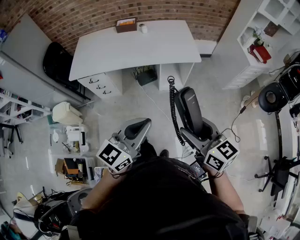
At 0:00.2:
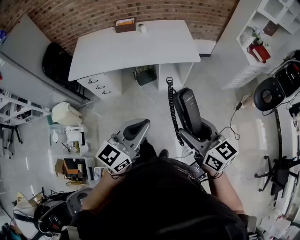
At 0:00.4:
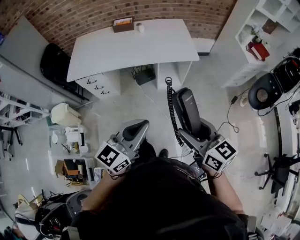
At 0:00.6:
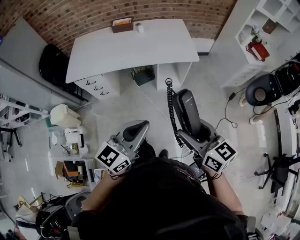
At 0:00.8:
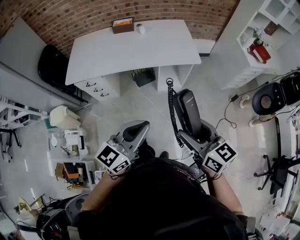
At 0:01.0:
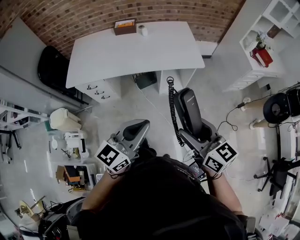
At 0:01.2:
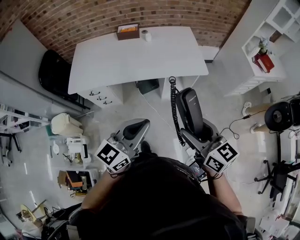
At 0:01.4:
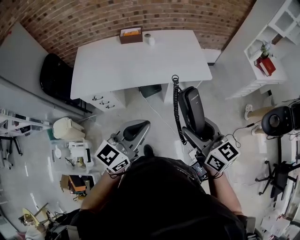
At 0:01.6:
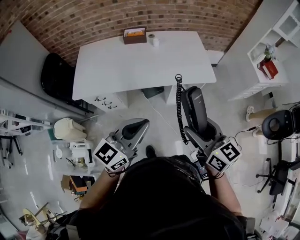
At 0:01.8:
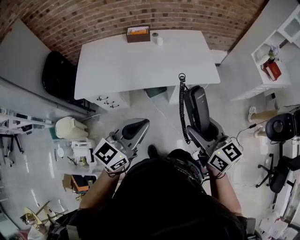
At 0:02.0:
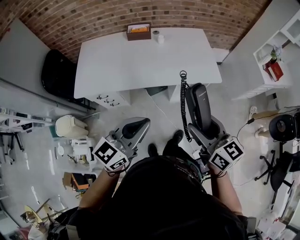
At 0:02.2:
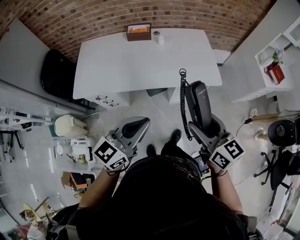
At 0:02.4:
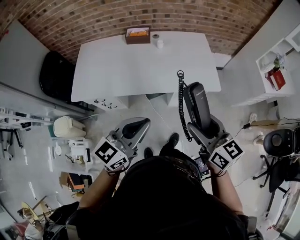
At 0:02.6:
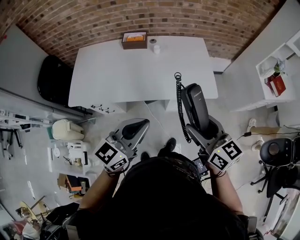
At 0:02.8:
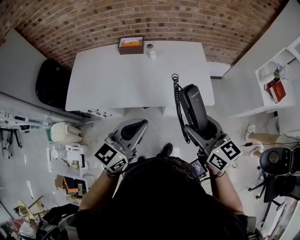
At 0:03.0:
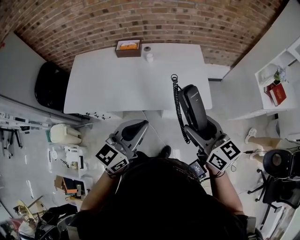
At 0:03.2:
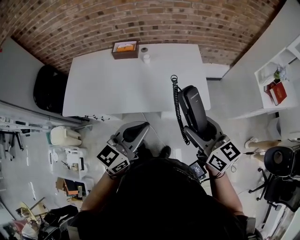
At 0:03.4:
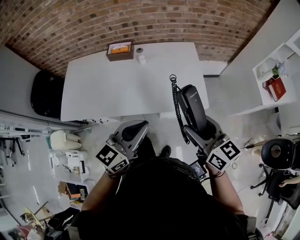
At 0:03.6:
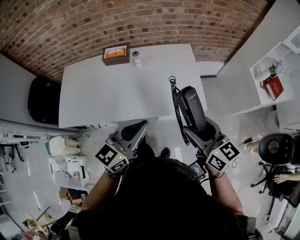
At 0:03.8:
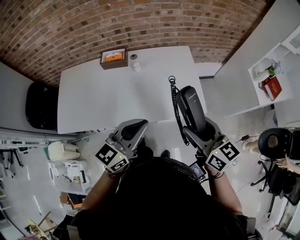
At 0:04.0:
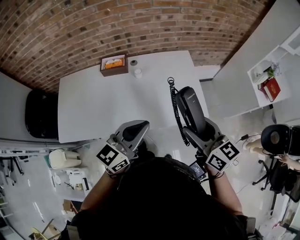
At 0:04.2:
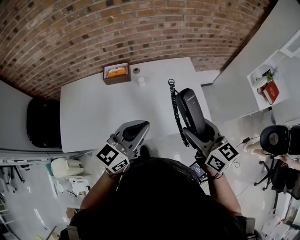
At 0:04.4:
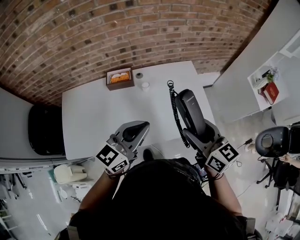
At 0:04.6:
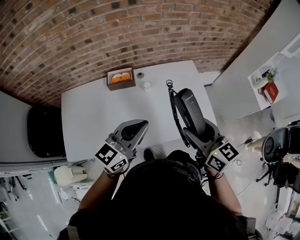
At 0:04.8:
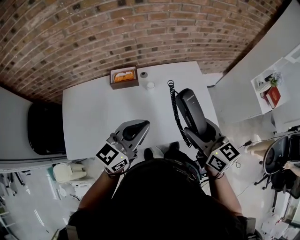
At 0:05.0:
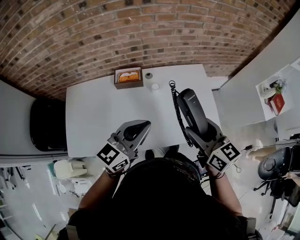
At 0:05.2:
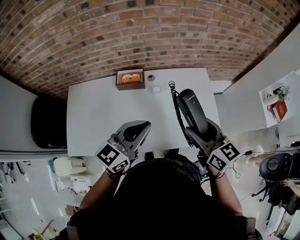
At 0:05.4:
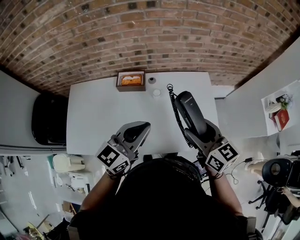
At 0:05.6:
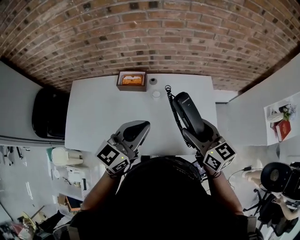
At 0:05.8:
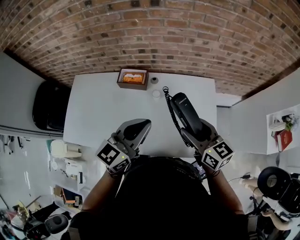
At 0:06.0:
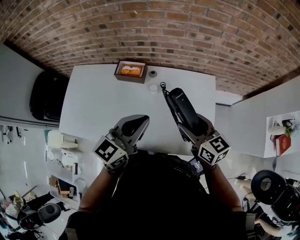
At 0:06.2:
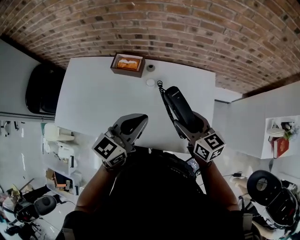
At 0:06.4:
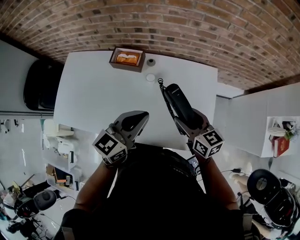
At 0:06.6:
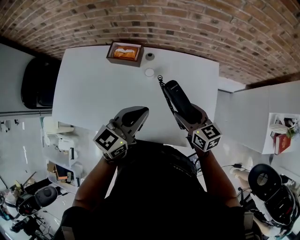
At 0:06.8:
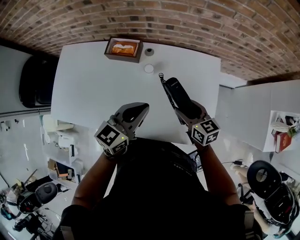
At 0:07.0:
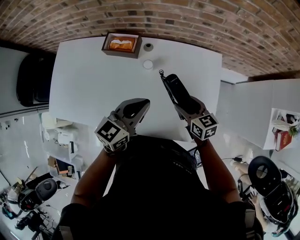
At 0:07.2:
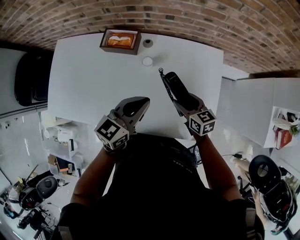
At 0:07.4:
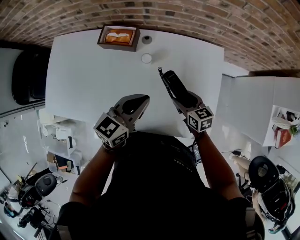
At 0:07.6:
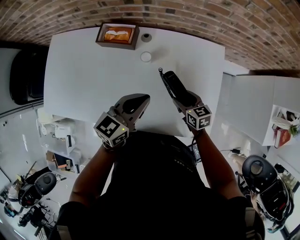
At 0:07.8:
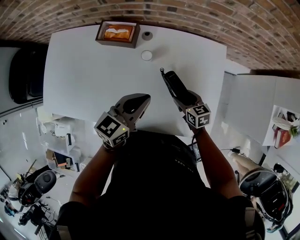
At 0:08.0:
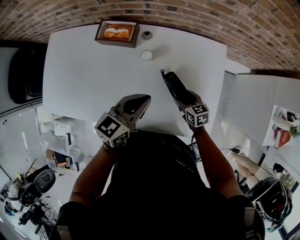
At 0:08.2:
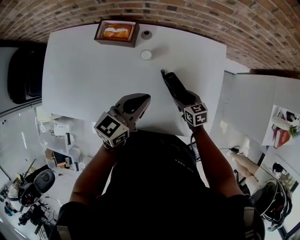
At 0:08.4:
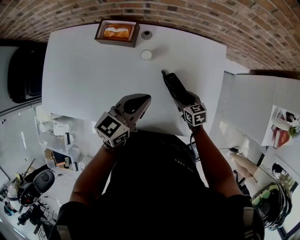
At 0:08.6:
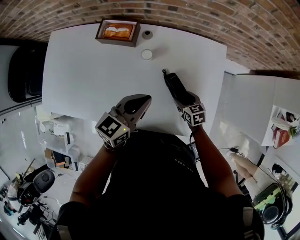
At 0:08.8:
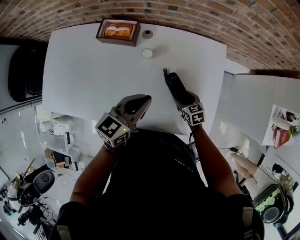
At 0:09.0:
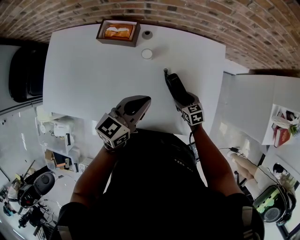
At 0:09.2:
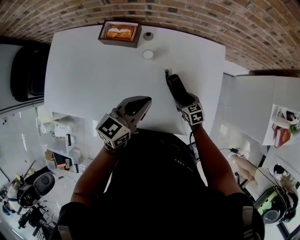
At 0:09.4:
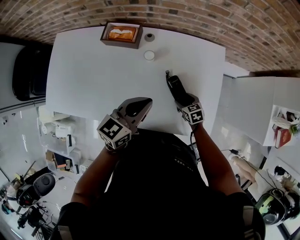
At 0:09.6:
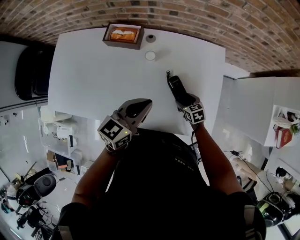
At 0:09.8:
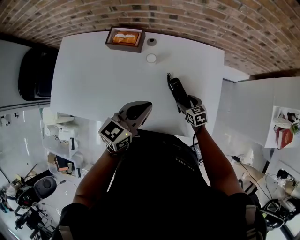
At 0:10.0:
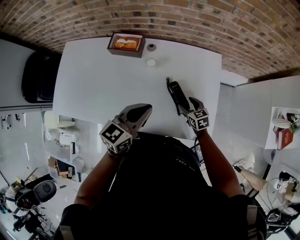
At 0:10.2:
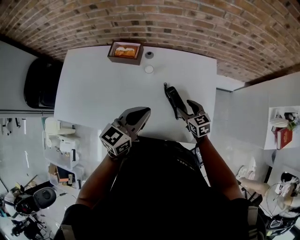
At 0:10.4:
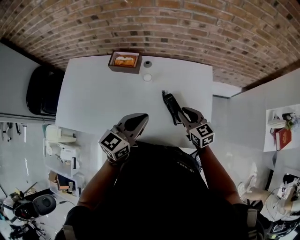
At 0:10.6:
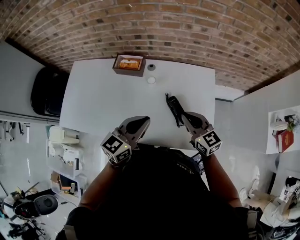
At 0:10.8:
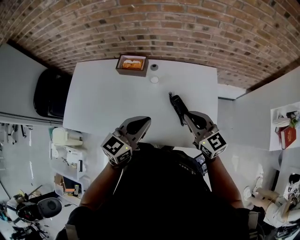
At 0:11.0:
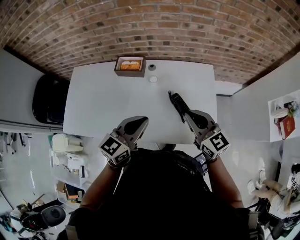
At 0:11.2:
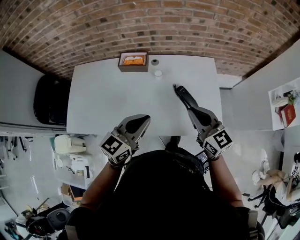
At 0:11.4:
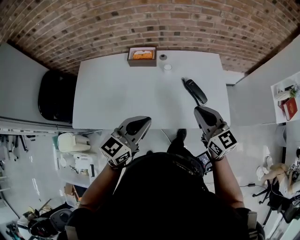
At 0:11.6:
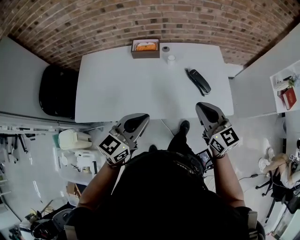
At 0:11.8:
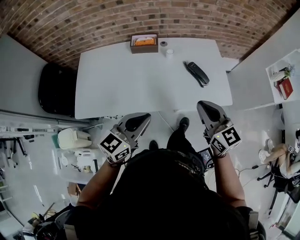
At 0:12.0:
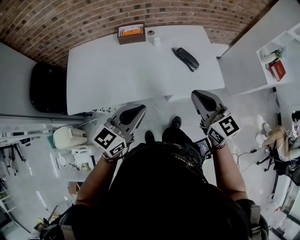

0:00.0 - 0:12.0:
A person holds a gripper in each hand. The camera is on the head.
0:00.0 - 0:01.6: Both grippers move forward and to the left, approximately 25 cm.
0:01.6 - 0:03.0: Both grippers travel together forward and to the right, some 25 cm.
0:03.0 - 0:04.4: The two grippers go some 20 cm forward and to the left.
0:04.4 - 0:06.0: The left gripper shifts approximately 15 cm forward and to the right, and swivels roughly 20 degrees. Meanwhile the right gripper moves forward and downward, roughly 20 cm, and rotates approximately 20 degrees.
0:06.0 - 0:07.6: The left gripper heads downward, covering about 15 cm. The right gripper moves downward, approximately 30 cm, and changes its angle by roughly 20 degrees.
0:07.6 - 0:09.0: The right gripper travels downward by approximately 10 cm.
0:09.0 - 0:10.4: The right gripper travels upward by approximately 20 cm, changes its angle by about 30 degrees, and closes, while the left gripper shifts roughly 10 cm upward and backward.
0:10.4 - 0:12.0: The left gripper travels backward and to the left by some 30 cm. The right gripper is displaced backward, upward and to the left by roughly 40 cm, and rotates about 20 degrees.

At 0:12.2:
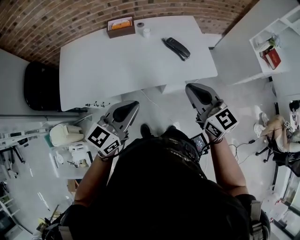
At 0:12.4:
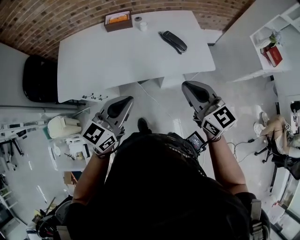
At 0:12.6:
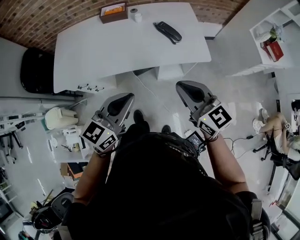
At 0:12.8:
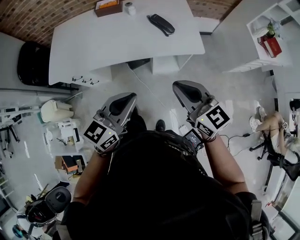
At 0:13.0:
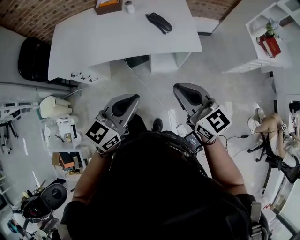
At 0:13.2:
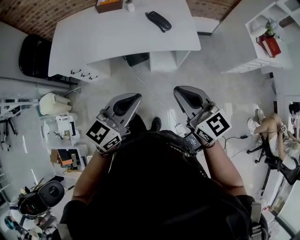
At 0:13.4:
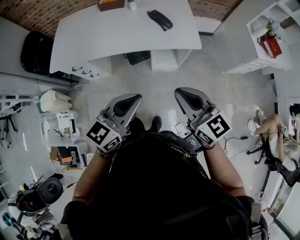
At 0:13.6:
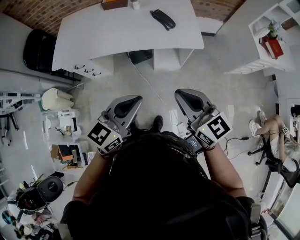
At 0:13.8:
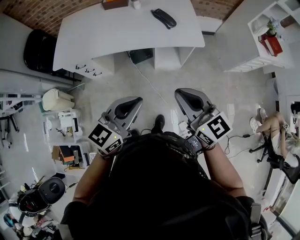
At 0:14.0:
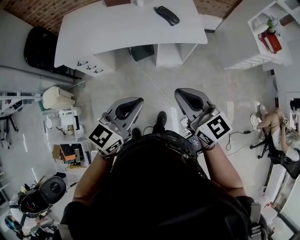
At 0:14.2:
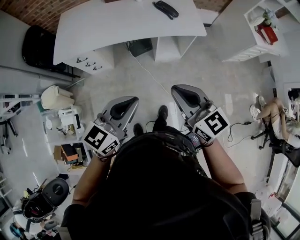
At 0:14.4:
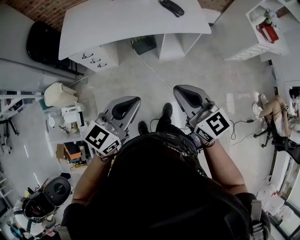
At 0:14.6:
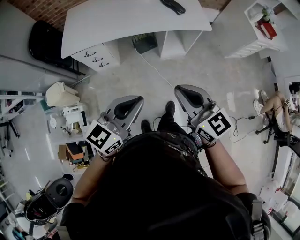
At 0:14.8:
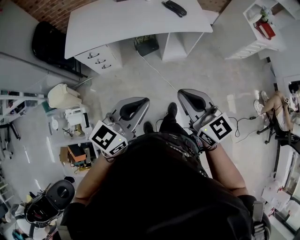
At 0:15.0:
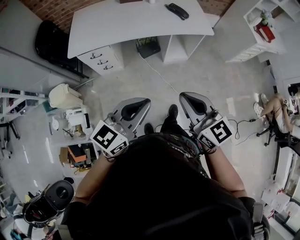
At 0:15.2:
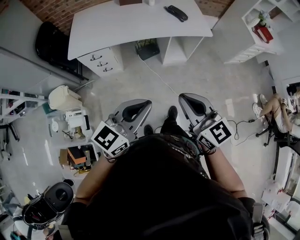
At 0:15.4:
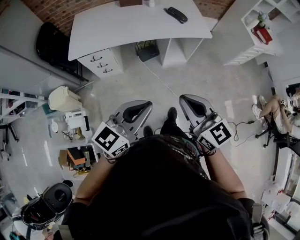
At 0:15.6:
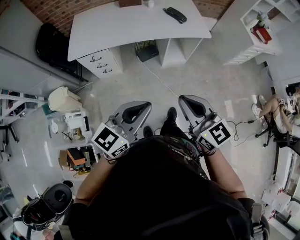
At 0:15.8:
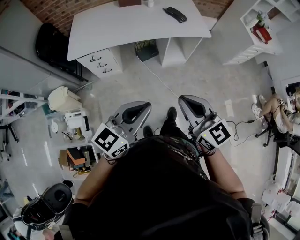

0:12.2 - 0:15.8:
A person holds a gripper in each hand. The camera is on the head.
0:12.2 - 0:14.0: The right gripper moves backward, approximately 25 cm. Meanwhile the left gripper travels backward and to the right by some 30 cm.
0:14.0 - 0:15.8: The grippers both shift backward and to the left by approximately 20 cm.

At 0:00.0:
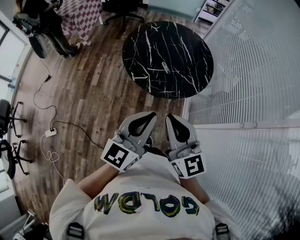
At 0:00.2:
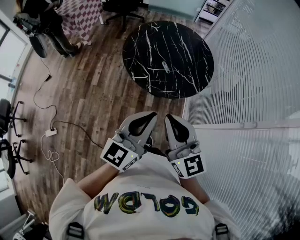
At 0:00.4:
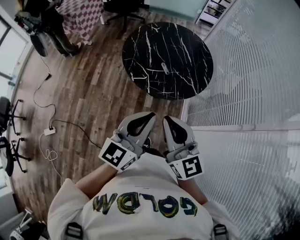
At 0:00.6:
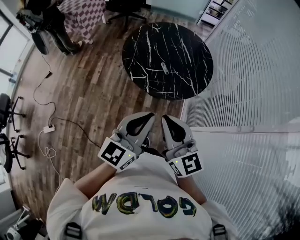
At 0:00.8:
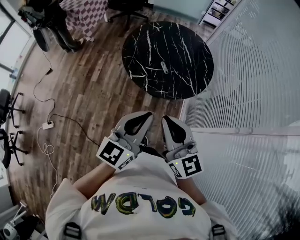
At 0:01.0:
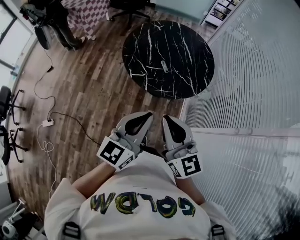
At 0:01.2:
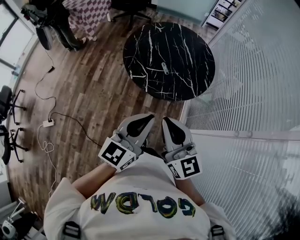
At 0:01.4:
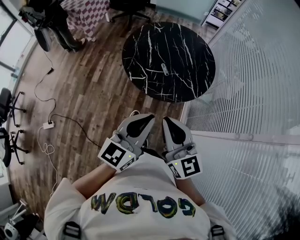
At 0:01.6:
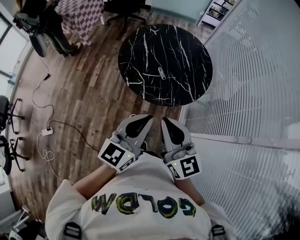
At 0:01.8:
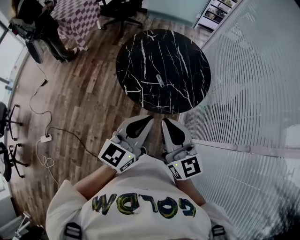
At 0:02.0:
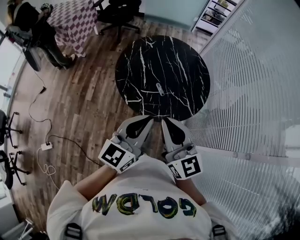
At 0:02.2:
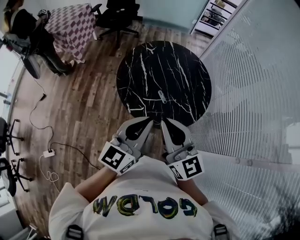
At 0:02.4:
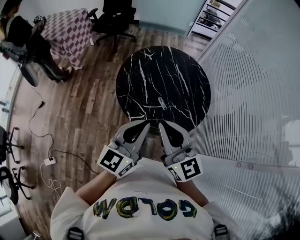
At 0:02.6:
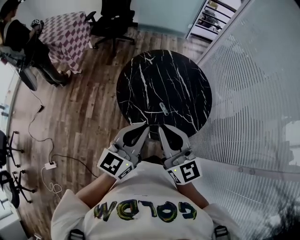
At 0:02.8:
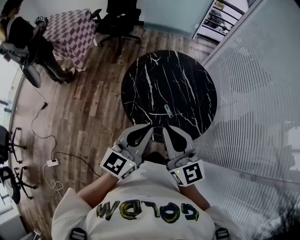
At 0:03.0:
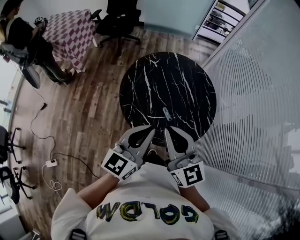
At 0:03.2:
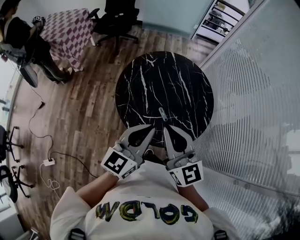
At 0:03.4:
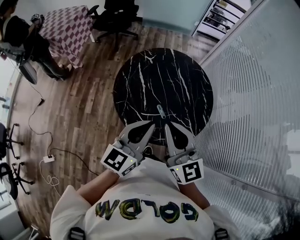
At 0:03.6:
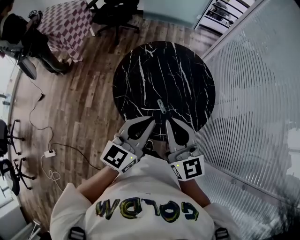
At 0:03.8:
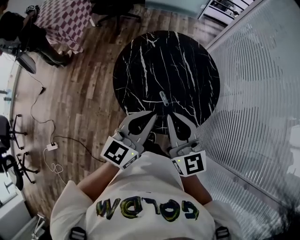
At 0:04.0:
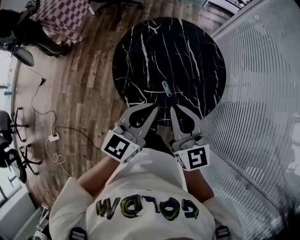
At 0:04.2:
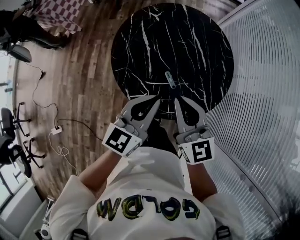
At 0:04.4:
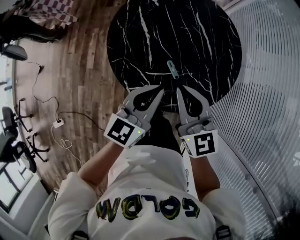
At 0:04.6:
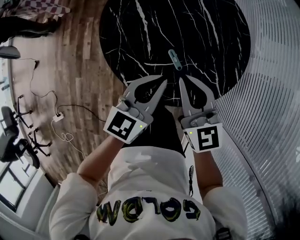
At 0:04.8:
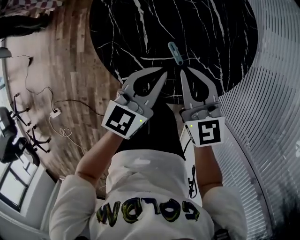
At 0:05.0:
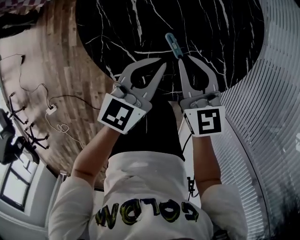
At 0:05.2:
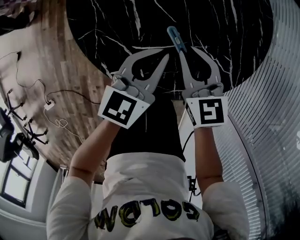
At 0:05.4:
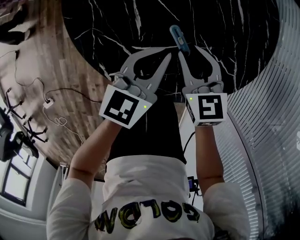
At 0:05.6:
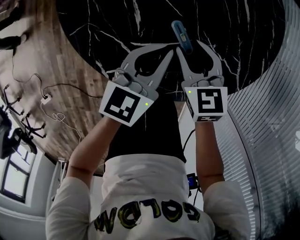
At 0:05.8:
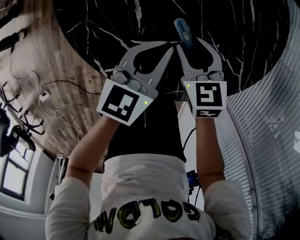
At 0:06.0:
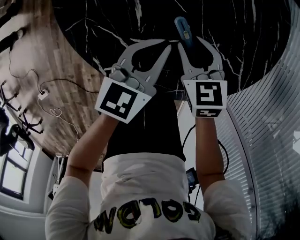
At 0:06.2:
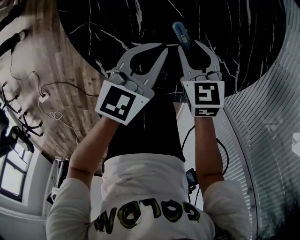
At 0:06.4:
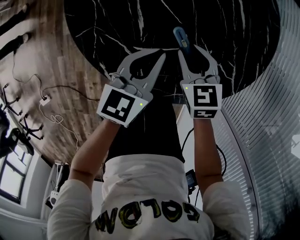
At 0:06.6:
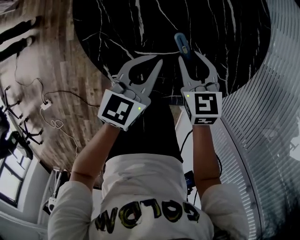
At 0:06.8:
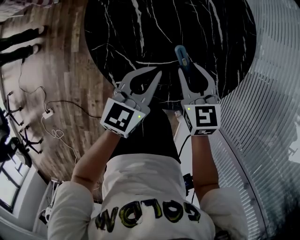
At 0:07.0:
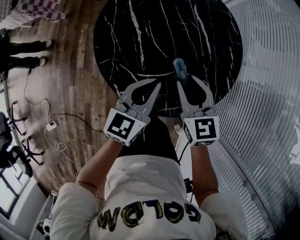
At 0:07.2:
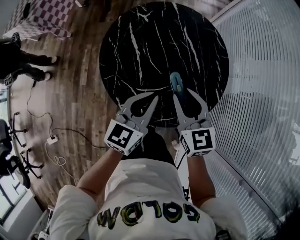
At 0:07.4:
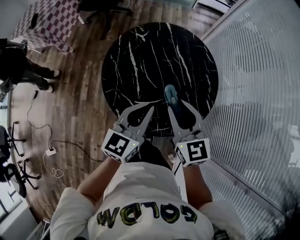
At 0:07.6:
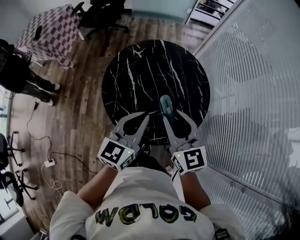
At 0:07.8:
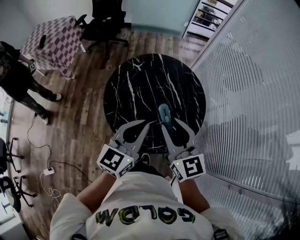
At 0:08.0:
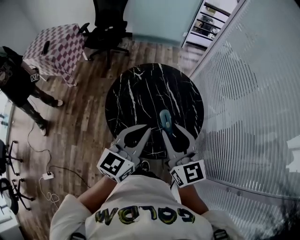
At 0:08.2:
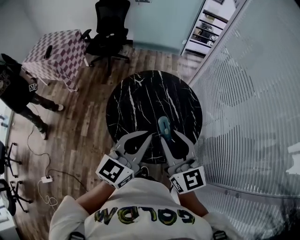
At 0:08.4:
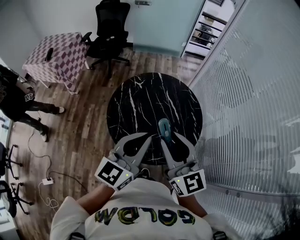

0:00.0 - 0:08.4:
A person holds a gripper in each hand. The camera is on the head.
0:00.0 - 0:01.4: The right gripper moves approximately 5 cm. The left gripper ends up roughly 5 cm from where it was.
0:01.4 - 0:02.8: Both grippers move forward and to the left, roughly 25 cm.
0:02.8 - 0:04.2: Both grippers travel together downward, forward and to the right, roughly 15 cm.
0:04.2 - 0:05.6: The two grippers go roughly 30 cm downward. The right gripper tips its fingers downward by approximately 30 degrees, and opens up.
0:05.6 - 0:07.0: Both grippers travel together upward, approximately 15 cm.
0:07.0 - 0:08.4: The two grippers go some 30 cm upward. The left gripper swivels approximately 20 degrees. Meanwhile the right gripper tips its fingers upward by some 30 degrees.
